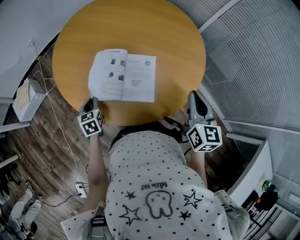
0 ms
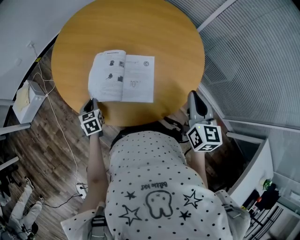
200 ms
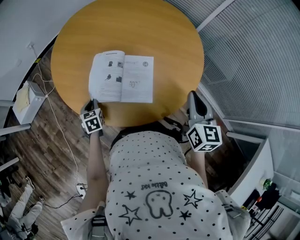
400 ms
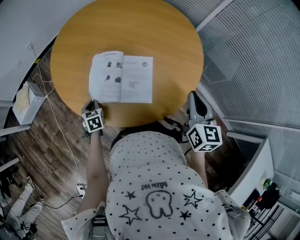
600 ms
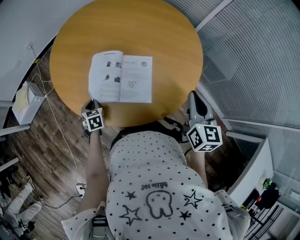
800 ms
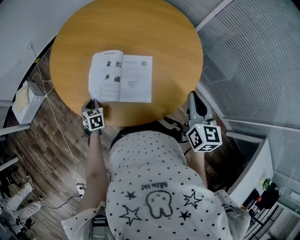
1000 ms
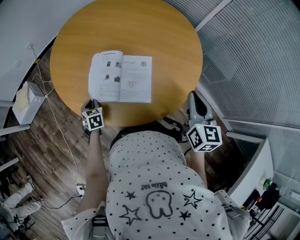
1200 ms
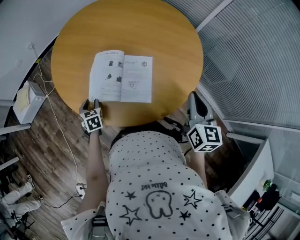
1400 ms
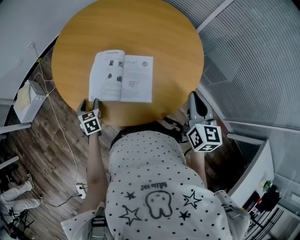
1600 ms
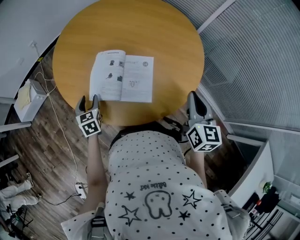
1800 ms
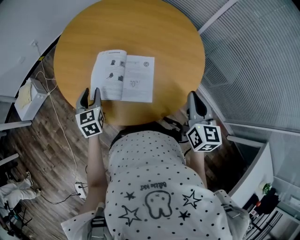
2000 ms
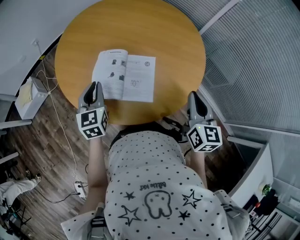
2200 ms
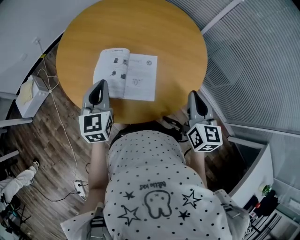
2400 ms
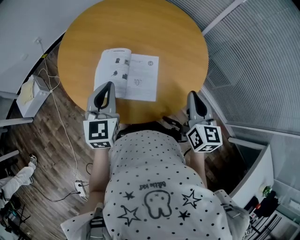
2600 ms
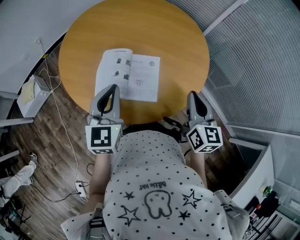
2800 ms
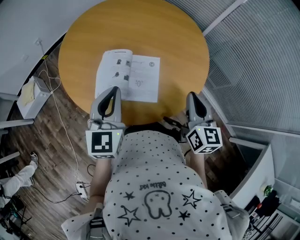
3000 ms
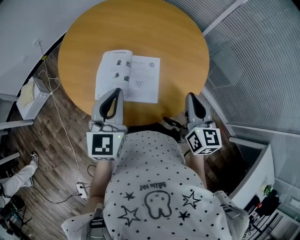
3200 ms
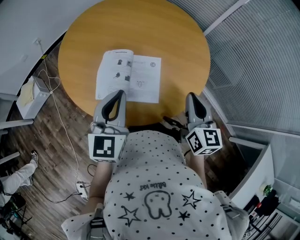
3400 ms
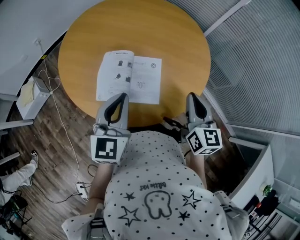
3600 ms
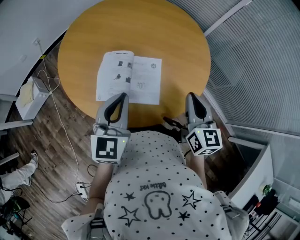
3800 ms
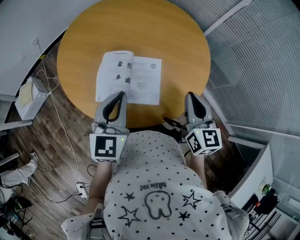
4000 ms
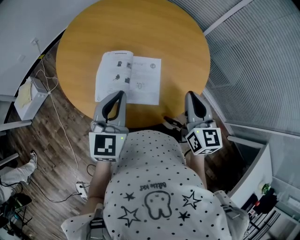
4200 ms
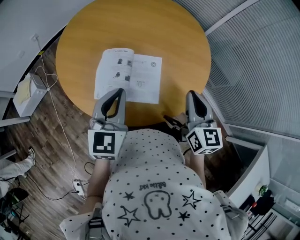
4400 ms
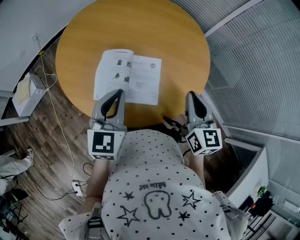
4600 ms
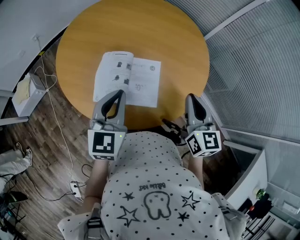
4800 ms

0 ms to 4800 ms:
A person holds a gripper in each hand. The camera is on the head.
0 ms to 1600 ms: The left gripper opens up.
1600 ms to 3200 ms: The left gripper moves upward and to the right, about 30 cm, points its fingers some 30 degrees further upward, and closes up.
3200 ms to 4800 ms: The grippers stay close to where they were, moving slightly.

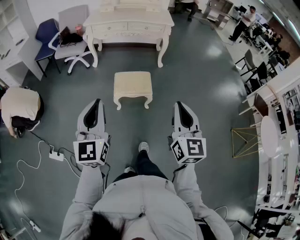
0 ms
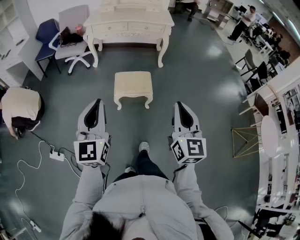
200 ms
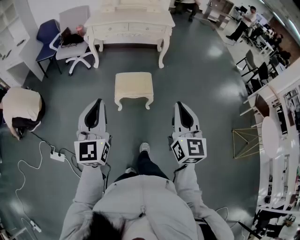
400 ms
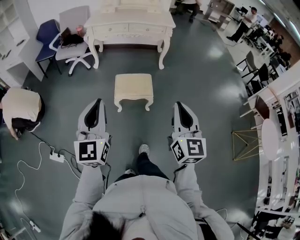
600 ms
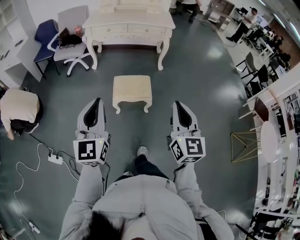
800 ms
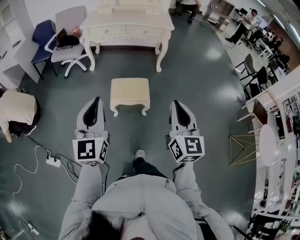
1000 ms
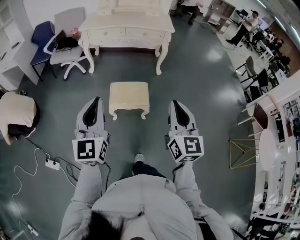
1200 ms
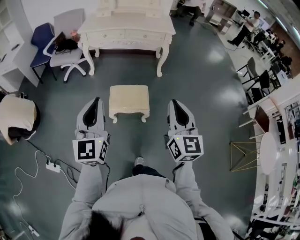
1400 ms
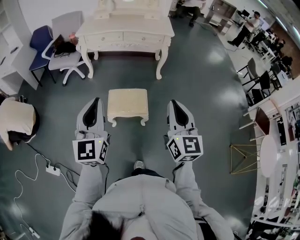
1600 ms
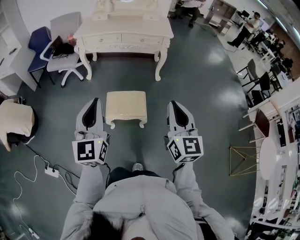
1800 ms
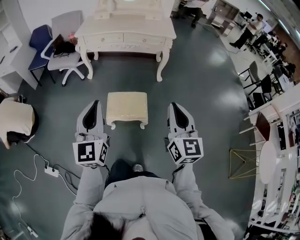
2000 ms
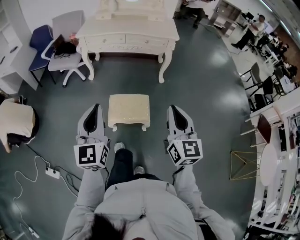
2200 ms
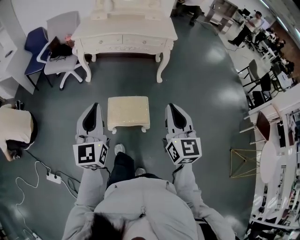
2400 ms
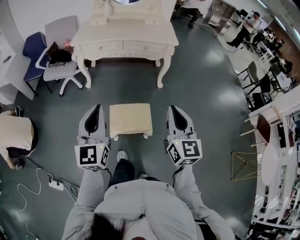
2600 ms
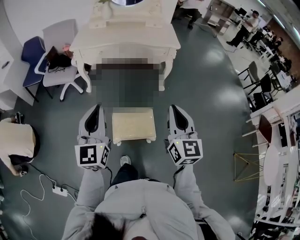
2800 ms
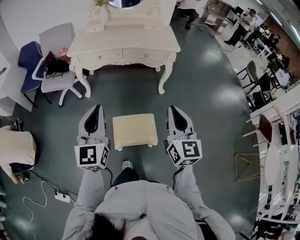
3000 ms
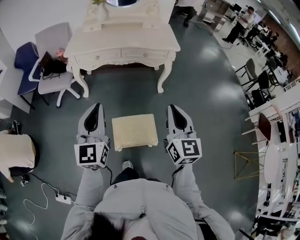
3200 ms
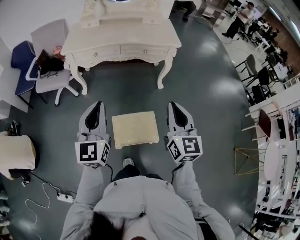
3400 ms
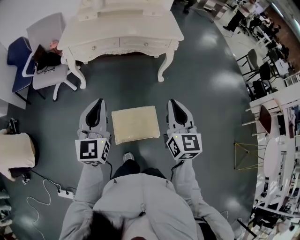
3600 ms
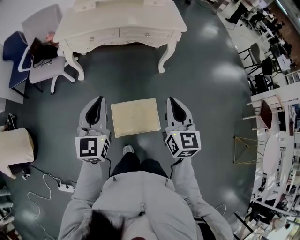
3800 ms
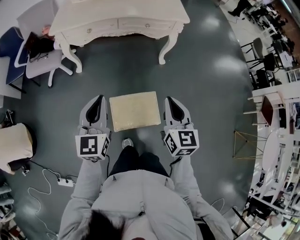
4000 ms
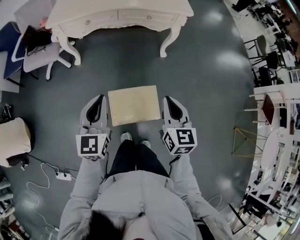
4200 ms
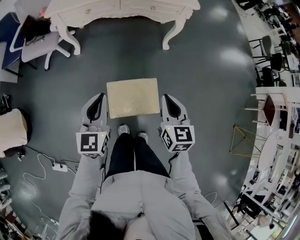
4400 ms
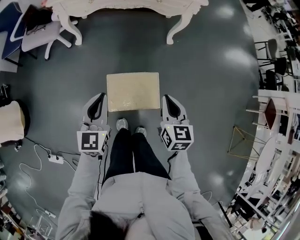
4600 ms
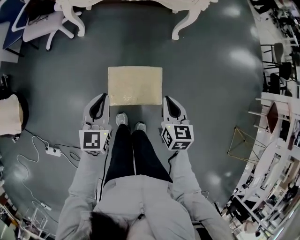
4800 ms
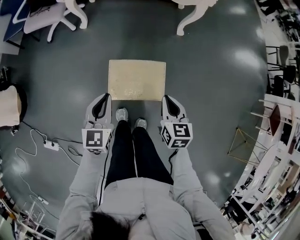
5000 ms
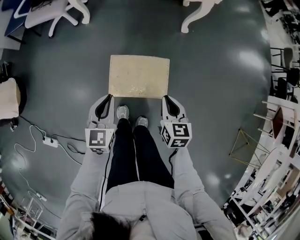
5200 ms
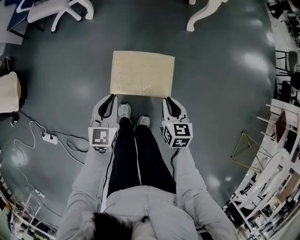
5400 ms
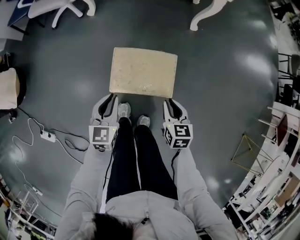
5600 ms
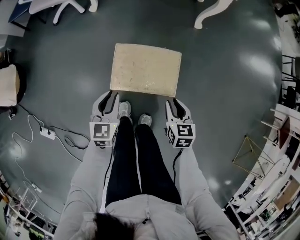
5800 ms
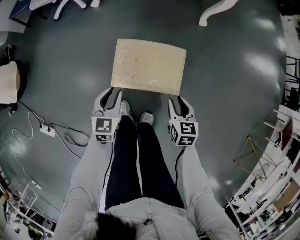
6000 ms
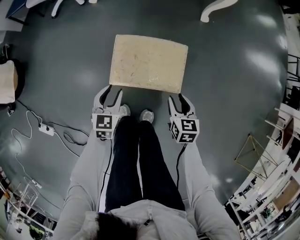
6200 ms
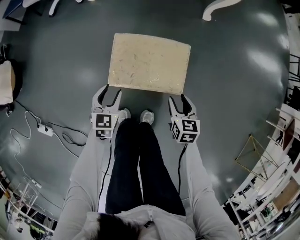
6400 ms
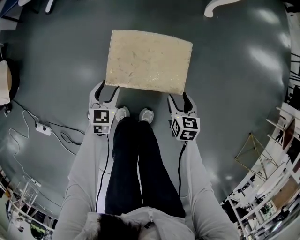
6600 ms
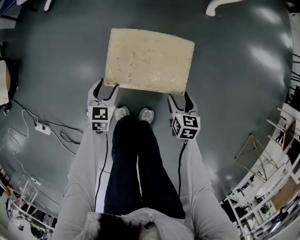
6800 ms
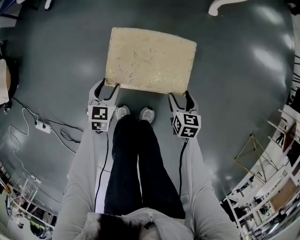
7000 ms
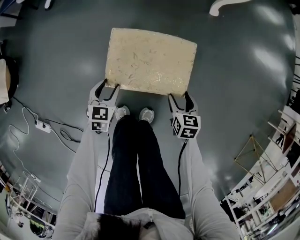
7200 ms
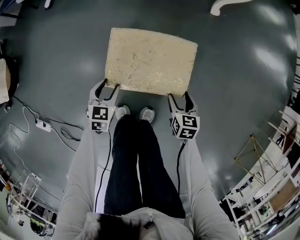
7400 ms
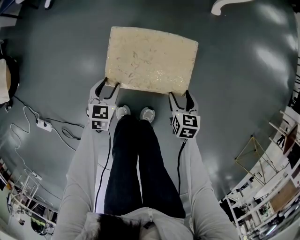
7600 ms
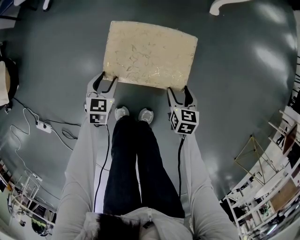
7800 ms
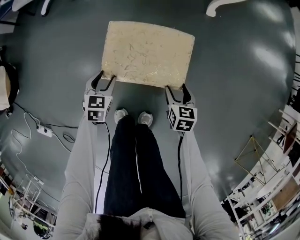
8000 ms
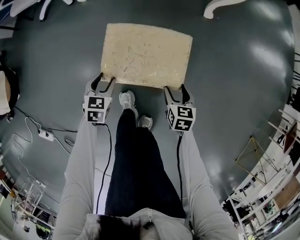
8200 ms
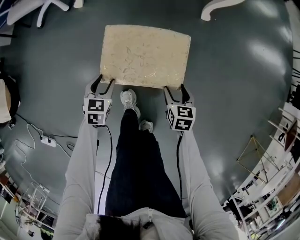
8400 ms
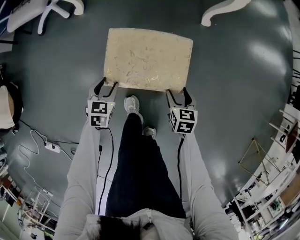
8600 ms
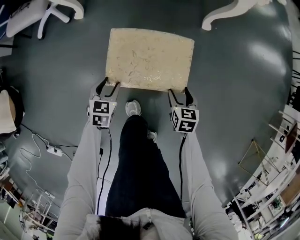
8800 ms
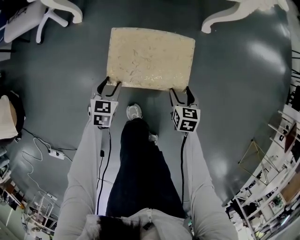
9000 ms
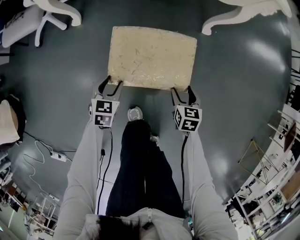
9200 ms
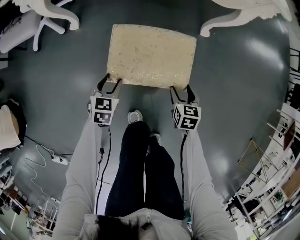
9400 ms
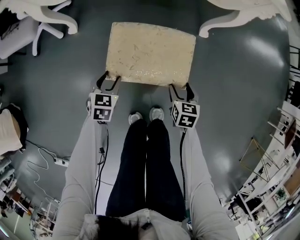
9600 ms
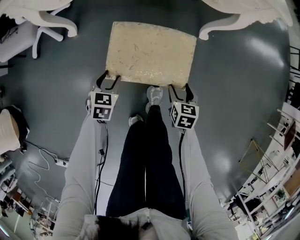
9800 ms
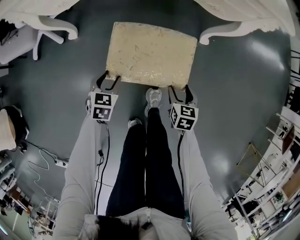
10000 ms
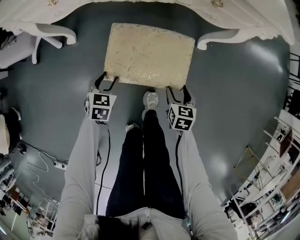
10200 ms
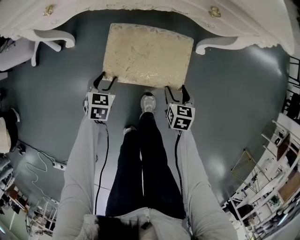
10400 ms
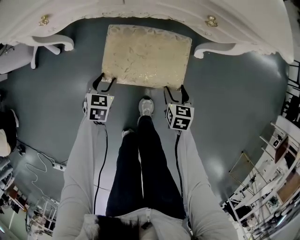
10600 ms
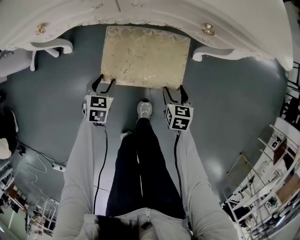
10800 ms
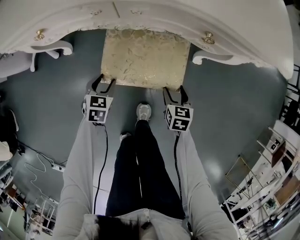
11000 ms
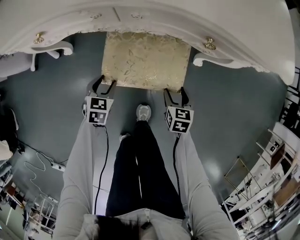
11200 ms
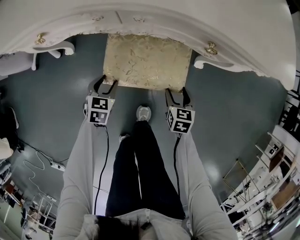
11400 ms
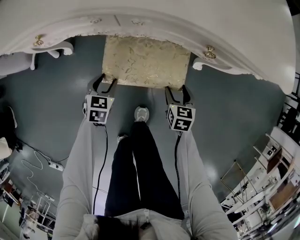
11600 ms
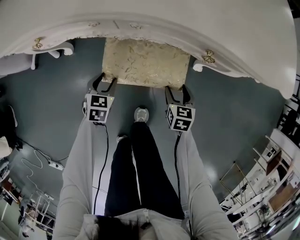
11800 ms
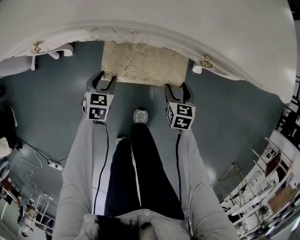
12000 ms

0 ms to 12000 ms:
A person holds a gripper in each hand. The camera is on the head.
0 ms to 1600 ms: Both grippers travel together forward, approximately 20 cm.
1600 ms to 3000 ms: The two grippers go about 25 cm forward.
3000 ms to 4400 ms: The grippers both shift downward by some 20 cm. The right gripper changes its angle by about 20 degrees; the left gripper swivels about 20 degrees.
4400 ms to 6000 ms: The left gripper shifts about 35 cm downward and backward, rotates approximately 20 degrees, and opens up. The right gripper shifts some 30 cm downward, changes its angle by roughly 20 degrees, and opens.
6000 ms to 7600 ms: The left gripper shifts approximately 10 cm downward, and opens up. The right gripper goes roughly 10 cm downward and to the right, and opens up.
7600 ms to 9000 ms: The left gripper moves about 10 cm forward and comes back, while the right gripper is displaced backward by some 5 cm.
9000 ms to 10400 ms: The two grippers go roughly 15 cm forward.
10400 ms to 12000 ms: Both grippers travel together forward, about 15 cm.

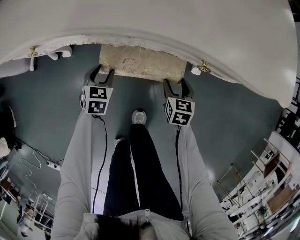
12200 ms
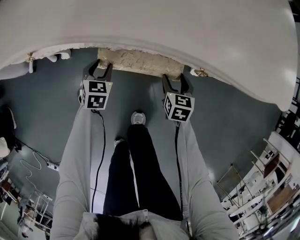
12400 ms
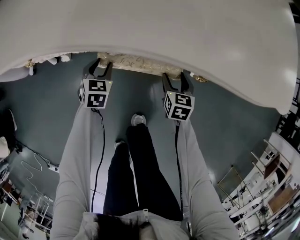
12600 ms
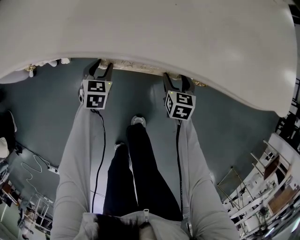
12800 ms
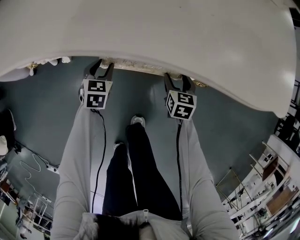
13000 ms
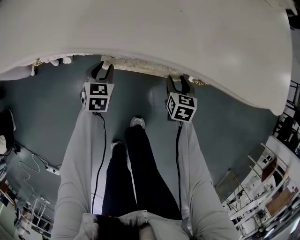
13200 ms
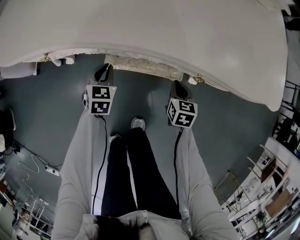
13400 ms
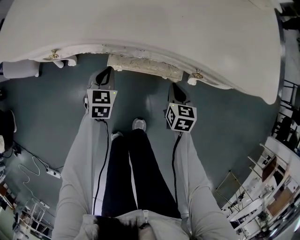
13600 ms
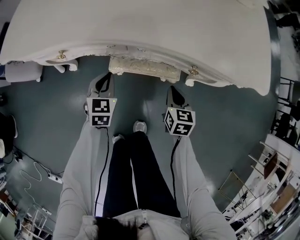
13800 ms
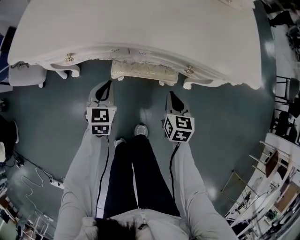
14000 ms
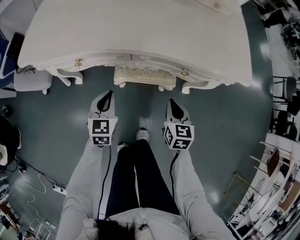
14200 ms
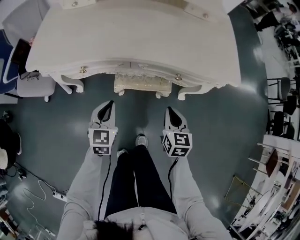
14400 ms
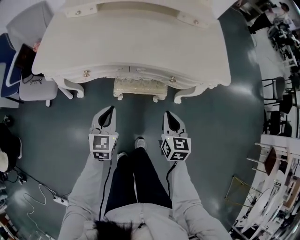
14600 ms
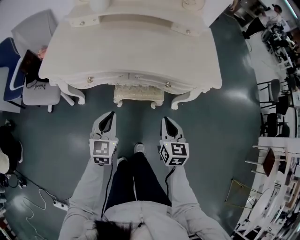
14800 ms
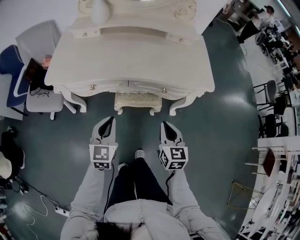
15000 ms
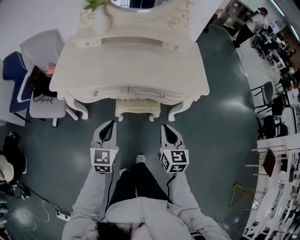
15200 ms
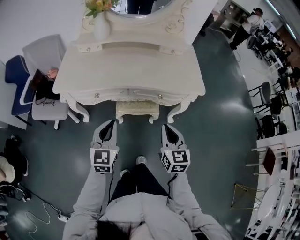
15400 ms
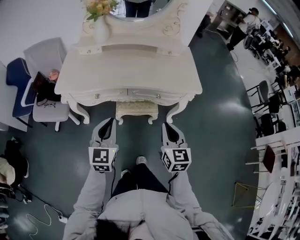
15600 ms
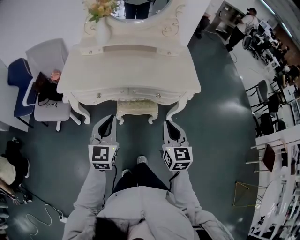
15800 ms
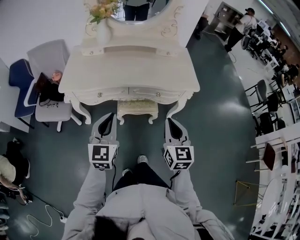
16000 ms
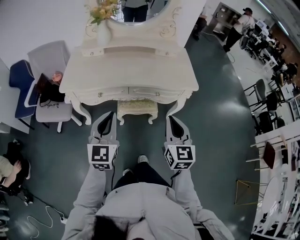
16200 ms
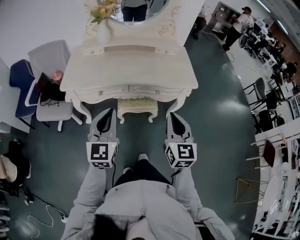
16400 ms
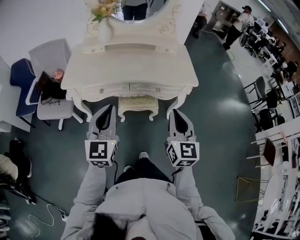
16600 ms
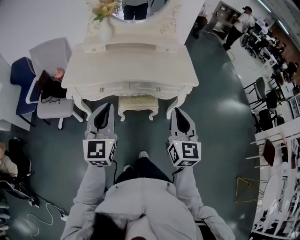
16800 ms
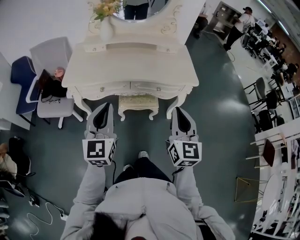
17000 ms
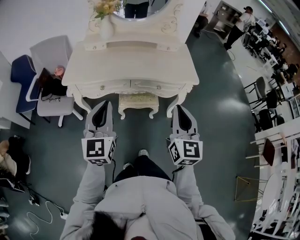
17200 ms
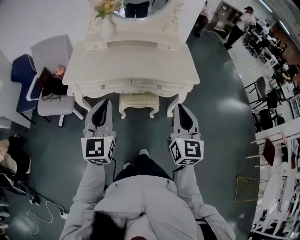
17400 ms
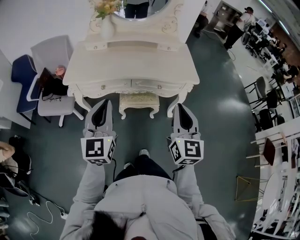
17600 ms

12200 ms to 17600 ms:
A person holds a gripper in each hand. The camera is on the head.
12200 ms to 13600 ms: Both grippers move upward, approximately 5 cm. The right gripper closes. Meanwhile the left gripper closes up.
13600 ms to 15000 ms: Both grippers travel together upward and backward, roughly 35 cm. The right gripper turns by roughly 20 degrees, while the left gripper turns by approximately 20 degrees.
15000 ms to 16200 ms: The left gripper moves upward, approximately 20 cm. Meanwhile the right gripper is displaced upward and backward by about 20 cm.
16200 ms to 17600 ms: Both grippers move upward, roughly 5 cm.

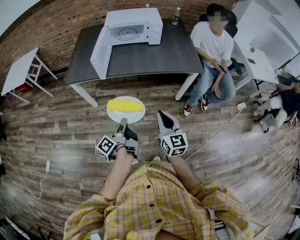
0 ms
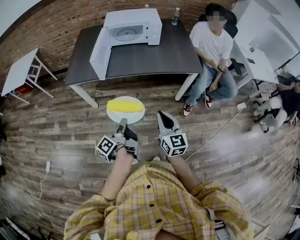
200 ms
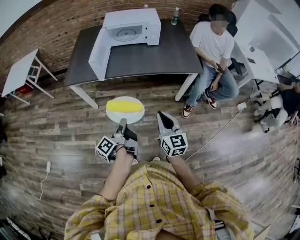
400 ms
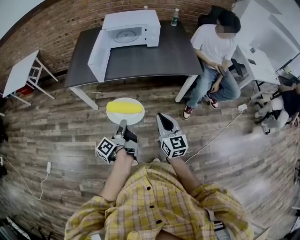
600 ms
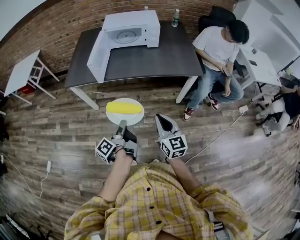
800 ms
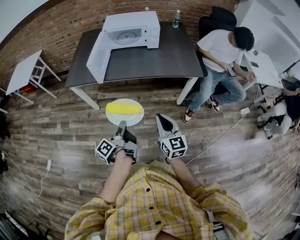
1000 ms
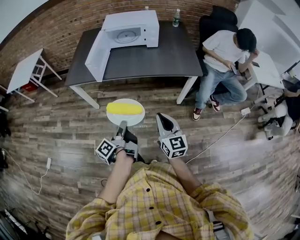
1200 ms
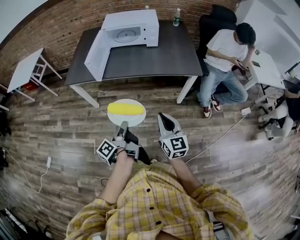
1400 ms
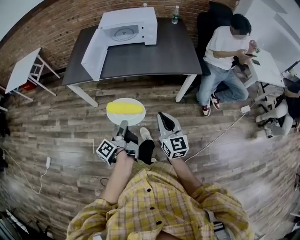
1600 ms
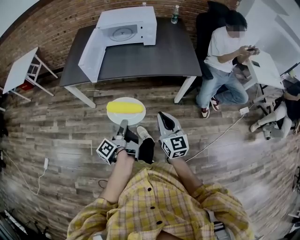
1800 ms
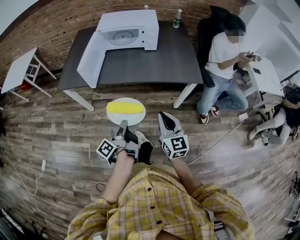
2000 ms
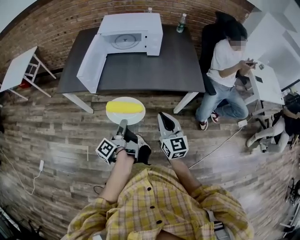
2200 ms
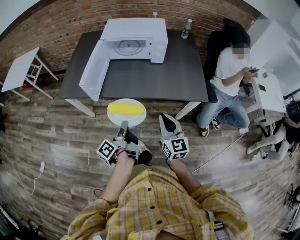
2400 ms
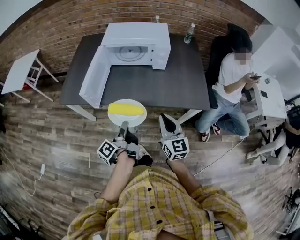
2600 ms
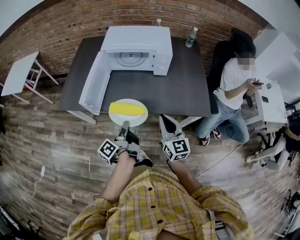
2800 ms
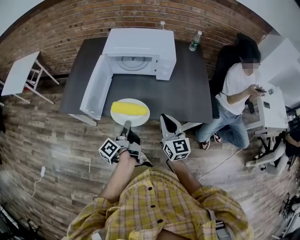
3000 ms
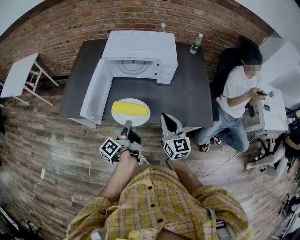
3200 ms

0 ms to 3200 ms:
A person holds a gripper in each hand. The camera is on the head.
0 ms to 1600 ms: The right gripper moves approximately 10 cm.
1600 ms to 3200 ms: The right gripper ends up about 40 cm from where it was.
